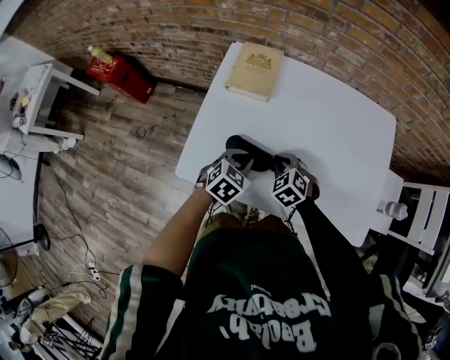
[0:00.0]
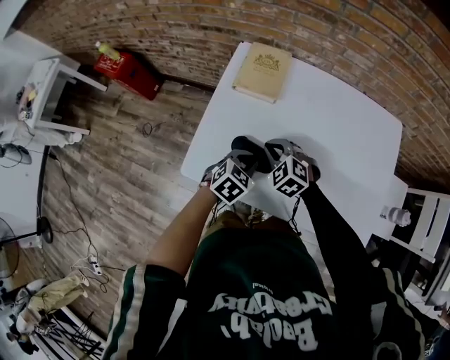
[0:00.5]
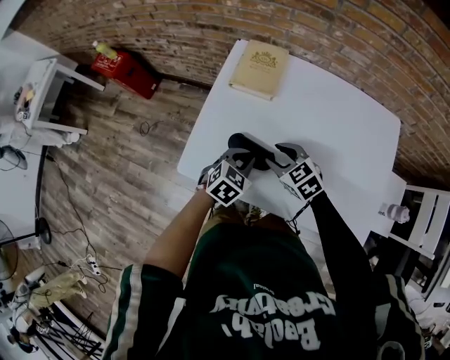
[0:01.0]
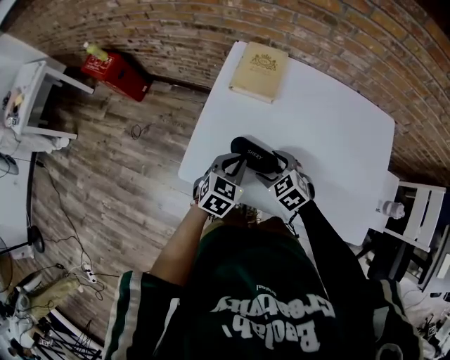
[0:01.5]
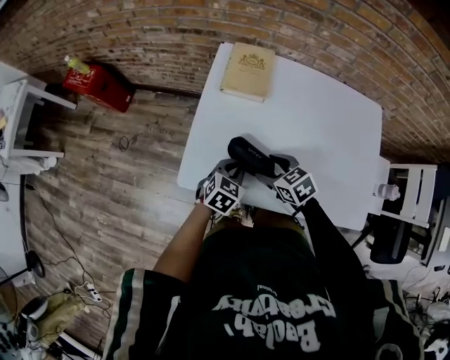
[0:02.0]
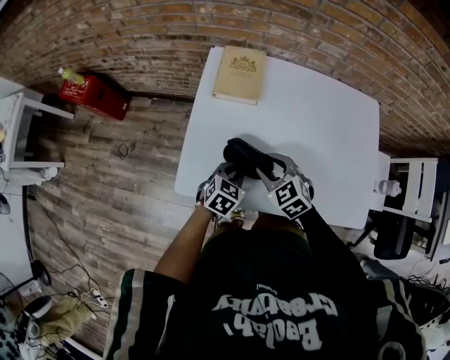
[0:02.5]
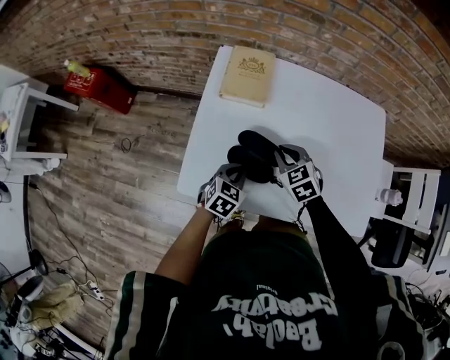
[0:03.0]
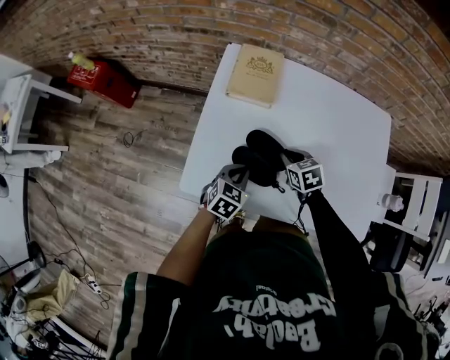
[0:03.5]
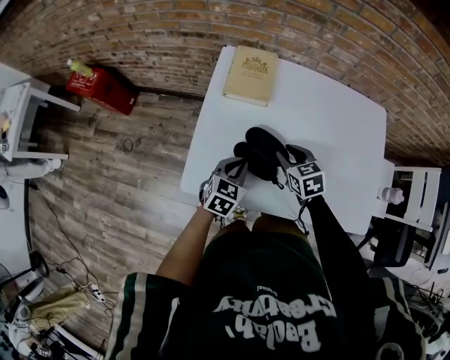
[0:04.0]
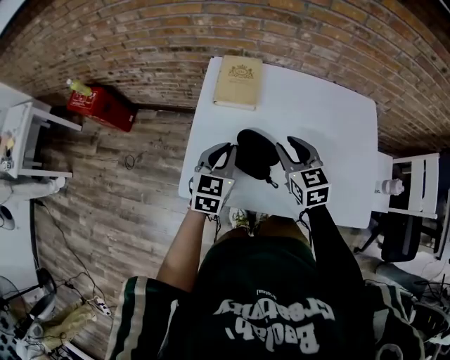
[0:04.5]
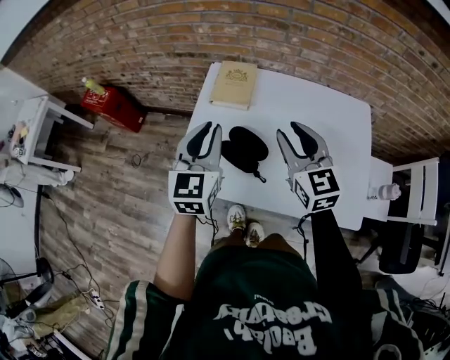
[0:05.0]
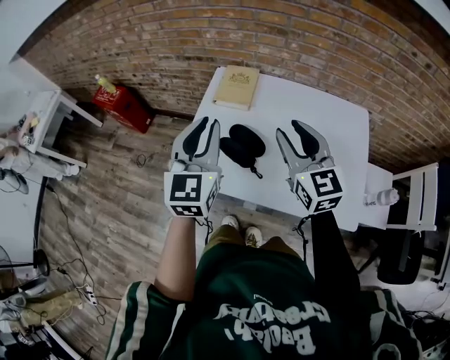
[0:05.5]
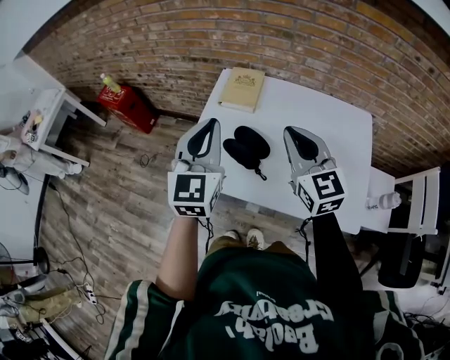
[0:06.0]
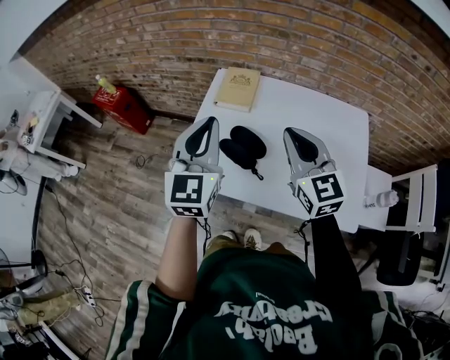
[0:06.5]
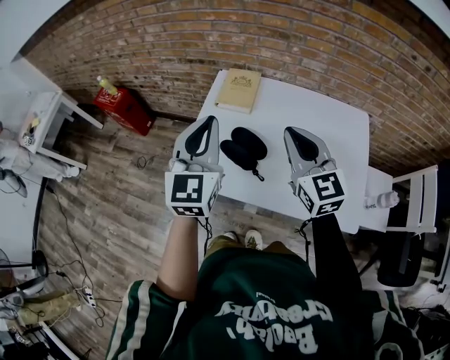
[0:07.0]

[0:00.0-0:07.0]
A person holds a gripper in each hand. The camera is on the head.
0:00.0 to 0:02.0: The right gripper heads to the left, covering roughly 5 cm, changes its angle by some 30 degrees, and opens its fingers.
0:02.0 to 0:03.5: The right gripper shifts about 10 cm forward and to the right, and closes up.
0:03.5 to 0:05.0: Both grippers travel together upward, roughly 30 cm. The left gripper points its fingers some 30 degrees further upward. Meanwhile the right gripper points its fingers roughly 40 degrees further upward.
0:05.0 to 0:07.0: The right gripper goes about 5 cm backward, and closes up, while the left gripper heads upward and backward, covering roughly 10 cm.

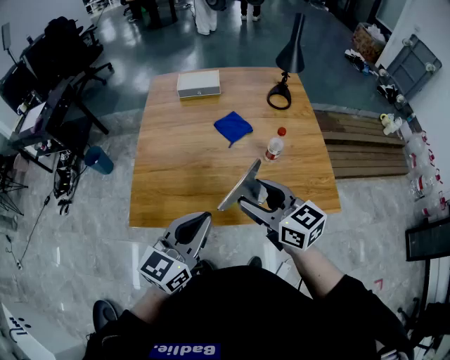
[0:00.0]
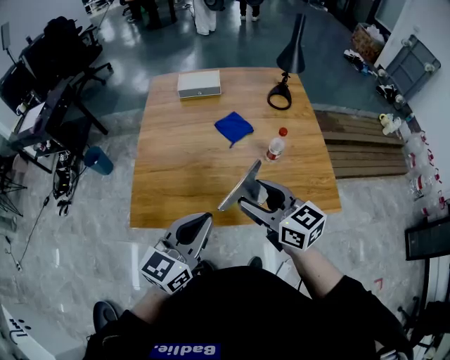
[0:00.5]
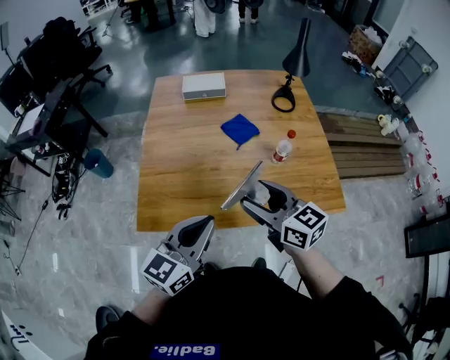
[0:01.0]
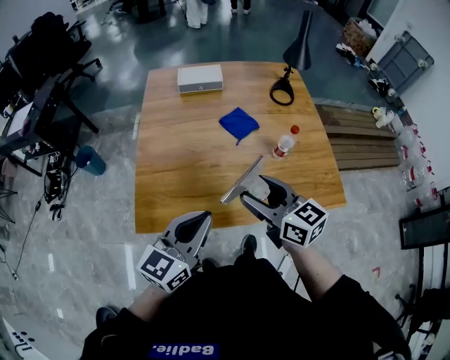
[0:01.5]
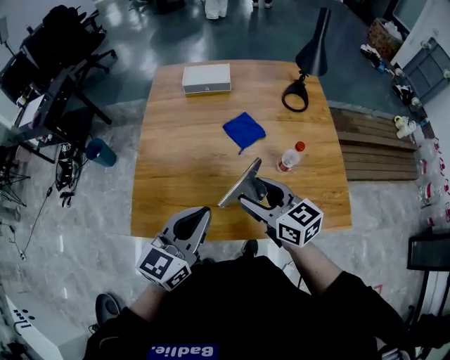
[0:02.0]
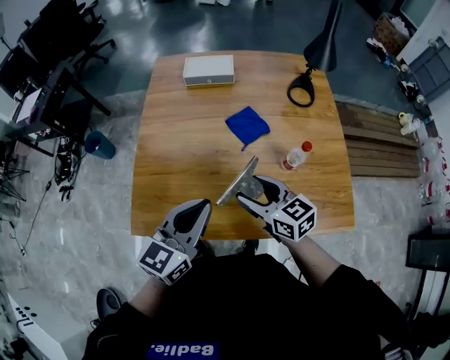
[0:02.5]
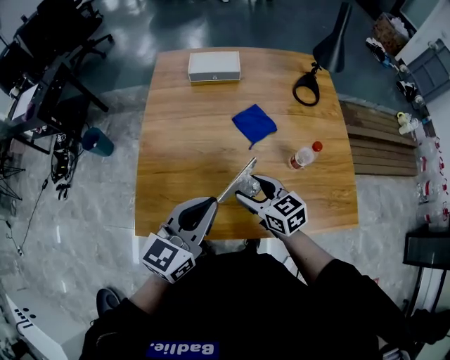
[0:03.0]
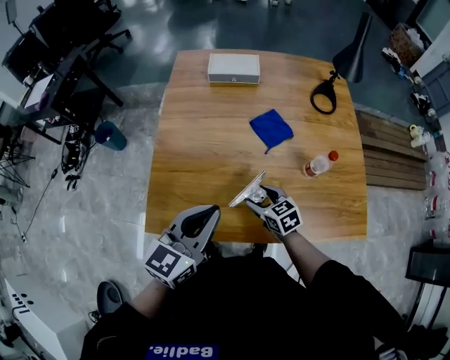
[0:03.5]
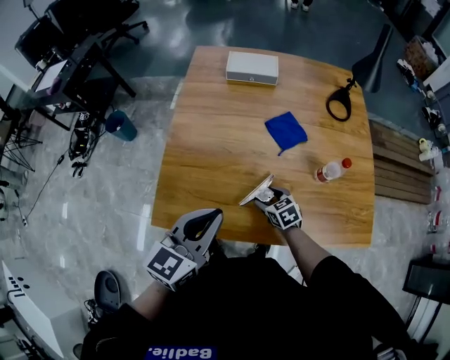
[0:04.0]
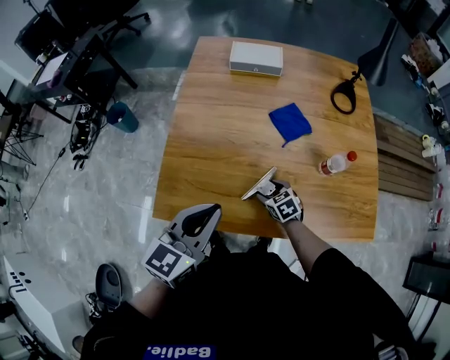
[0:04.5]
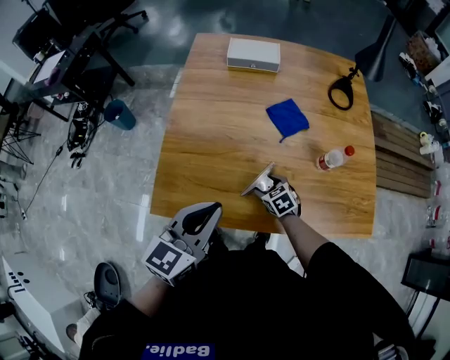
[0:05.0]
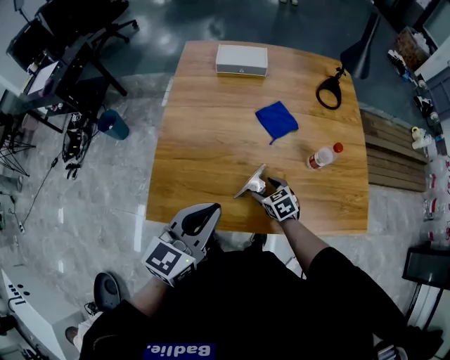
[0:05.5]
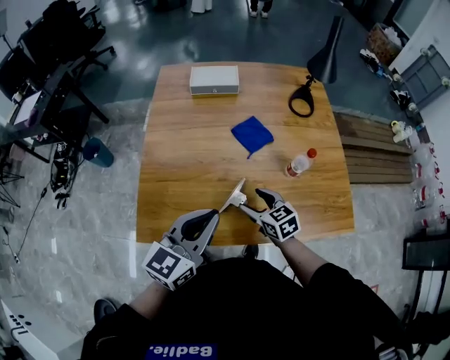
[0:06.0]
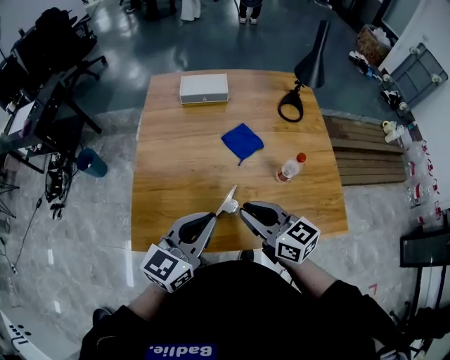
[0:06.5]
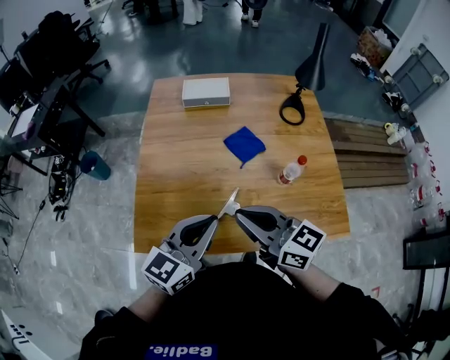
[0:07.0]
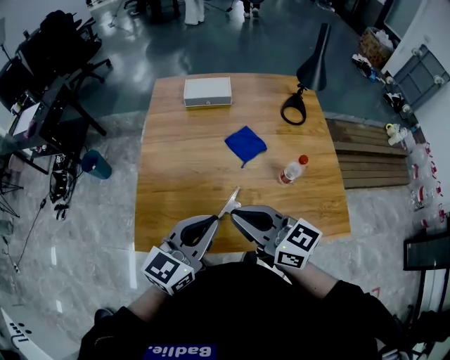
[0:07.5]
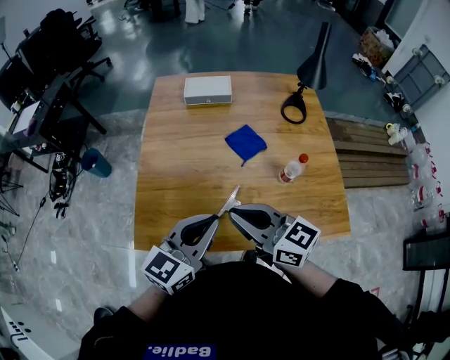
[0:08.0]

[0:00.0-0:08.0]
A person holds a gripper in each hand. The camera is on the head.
0:00.0 to 0:02.0: Both grippers travel together forward, about 10 cm.
0:02.0 to 0:04.0: The left gripper goes about 10 cm to the left. Meanwhile the right gripper heads downward, covering roughly 25 cm, and points its fingers about 30 degrees further downward.
0:04.0 to 0:06.0: The right gripper travels upward by about 10 cm; the left gripper shifts by some 5 cm.
0:06.0 to 0:08.0: The right gripper goes roughly 20 cm upward, points its fingers about 30 degrees further upward, and closes its fingers.

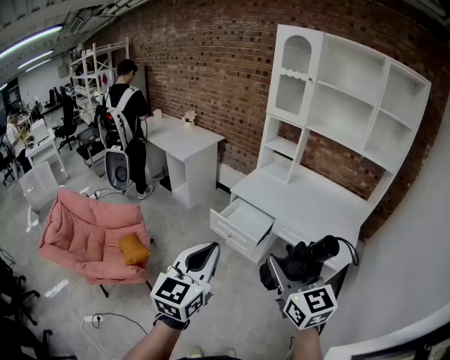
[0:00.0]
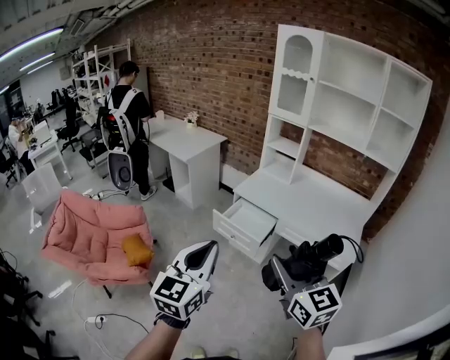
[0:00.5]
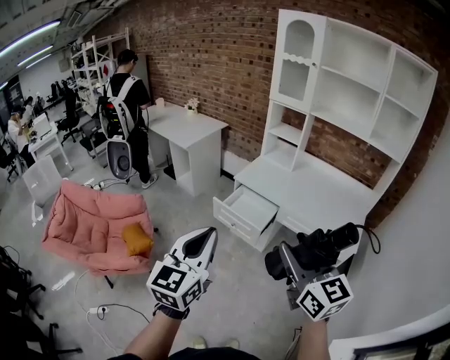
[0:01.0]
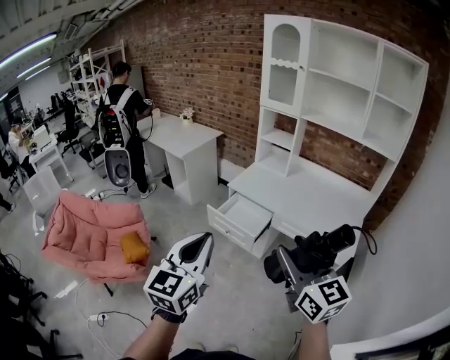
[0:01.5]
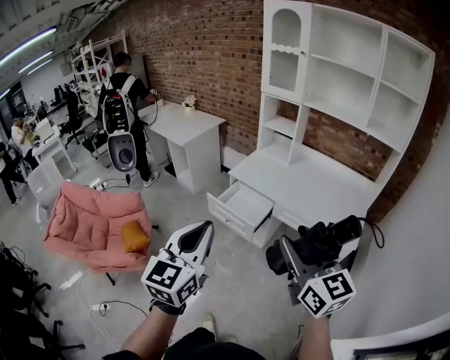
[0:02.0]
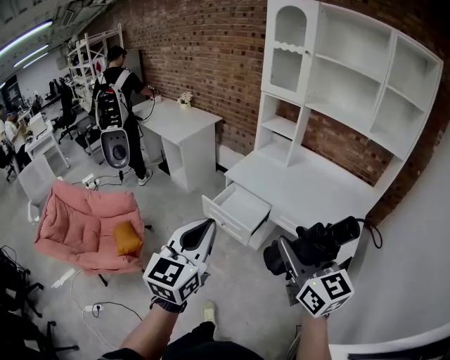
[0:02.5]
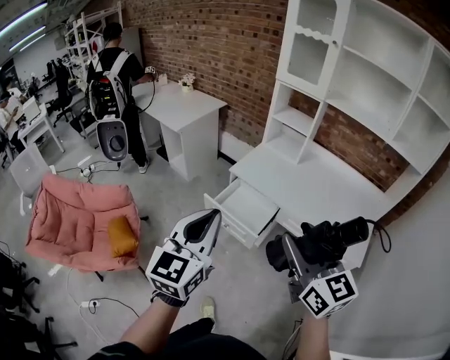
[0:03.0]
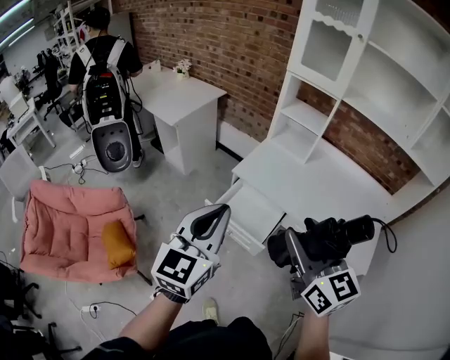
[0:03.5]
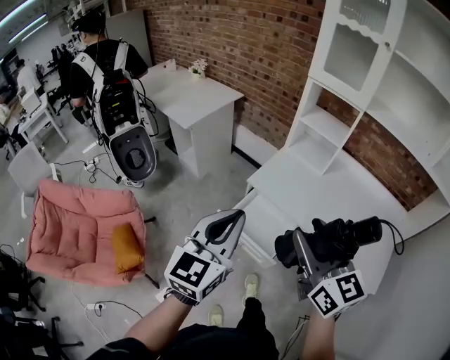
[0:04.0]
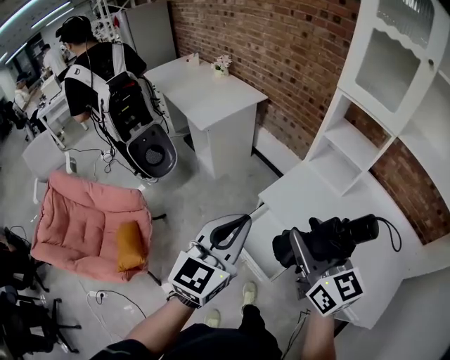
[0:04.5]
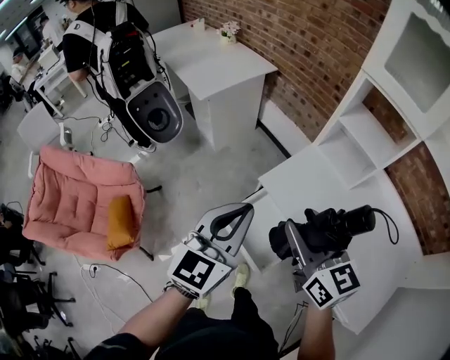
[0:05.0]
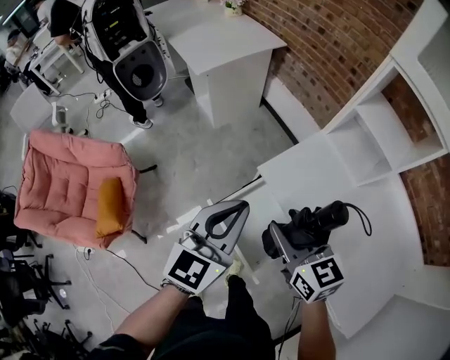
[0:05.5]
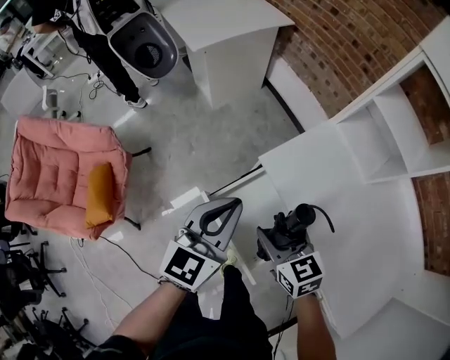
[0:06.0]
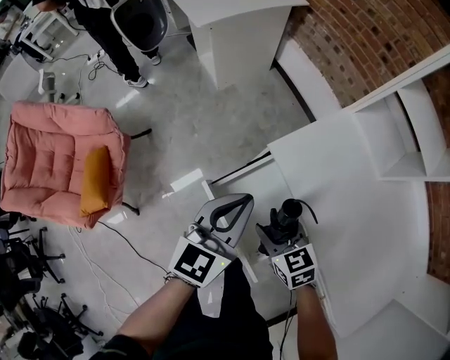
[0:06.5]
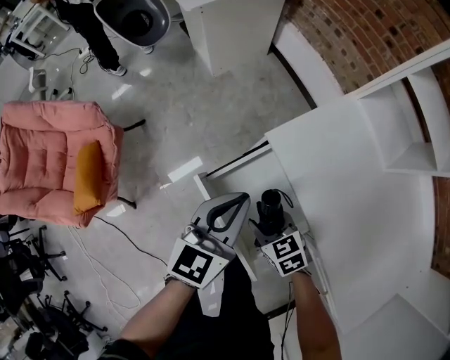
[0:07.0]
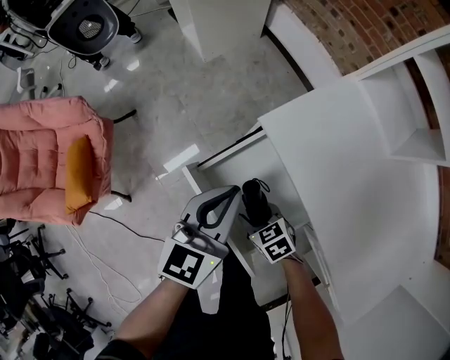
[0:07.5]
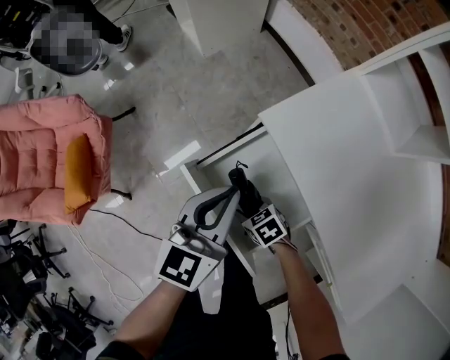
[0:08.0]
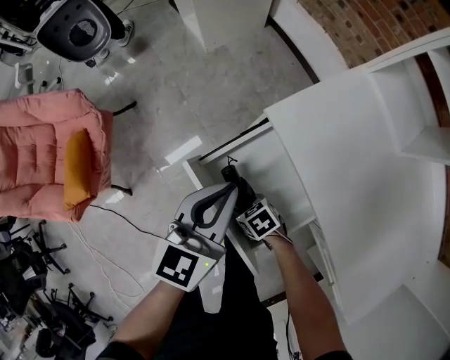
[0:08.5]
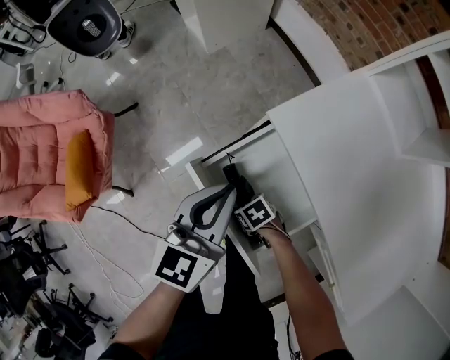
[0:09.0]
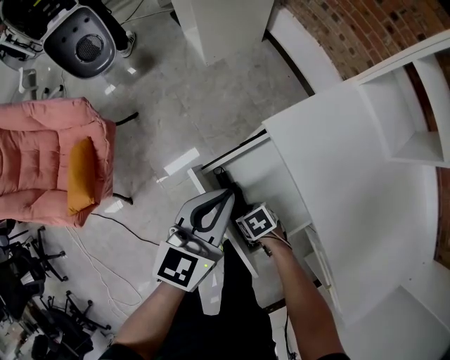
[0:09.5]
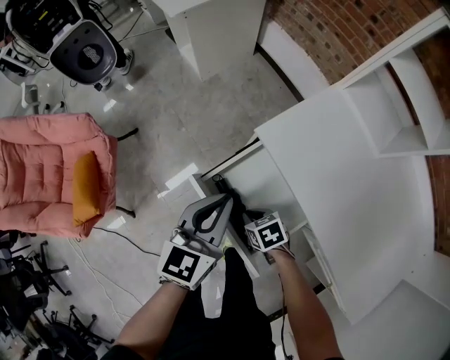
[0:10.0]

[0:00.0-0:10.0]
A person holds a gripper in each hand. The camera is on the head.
0:00.0 to 0:02.0: Both grippers move to the right, roughly 10 cm.
0:02.0 to 0:04.0: The grippers both shift forward by about 35 cm.
0:04.0 to 0:06.0: Both grippers travel together downward and forward, about 35 cm. The right gripper angles its fingers downward, by some 30 degrees.
0:06.0 to 0:08.0: The right gripper travels downward by roughly 30 cm, and rotates approximately 40 degrees; the left gripper is displaced downward by roughly 15 cm.
0:08.0 to 0:10.0: The right gripper moves upward, about 5 cm, and closes.

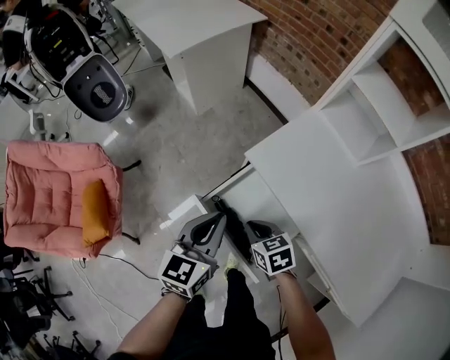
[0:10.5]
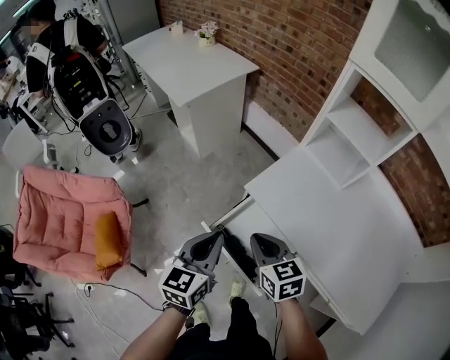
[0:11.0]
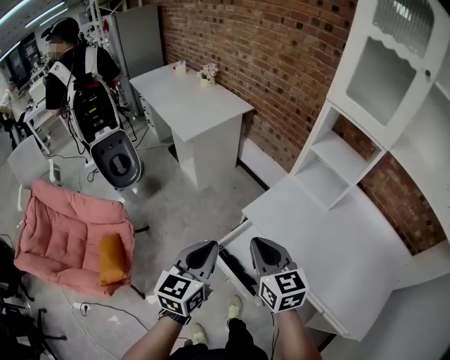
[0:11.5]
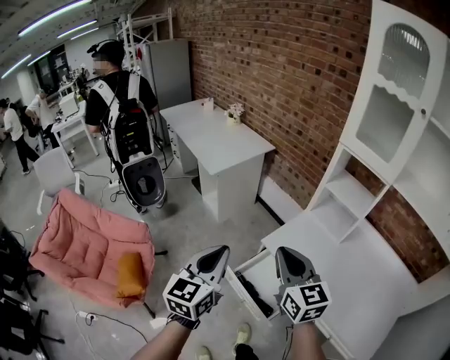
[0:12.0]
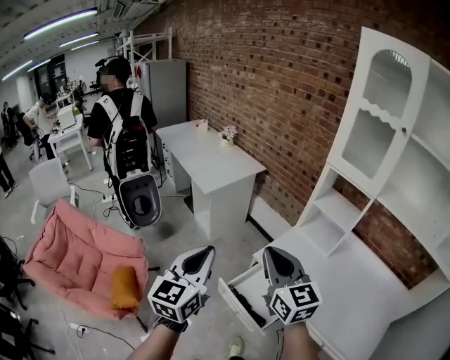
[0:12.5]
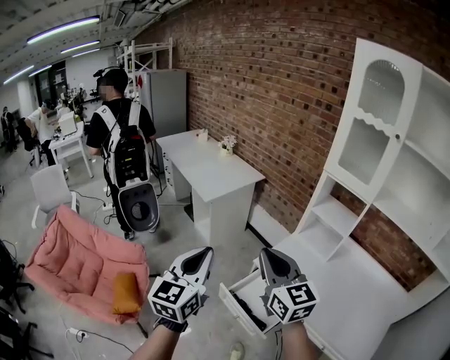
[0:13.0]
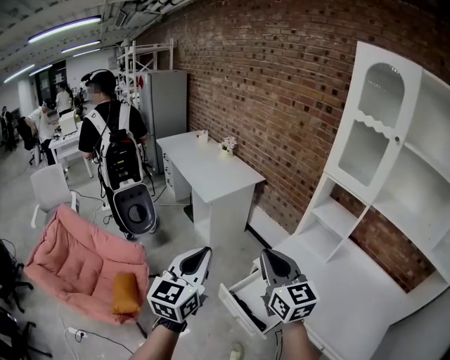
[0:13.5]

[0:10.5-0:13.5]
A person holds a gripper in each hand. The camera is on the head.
0:10.5 to 0:12.0: The right gripper travels upward by about 40 cm, and angles its fingers upward, by roughly 40 degrees, while the left gripper is displaced upward by roughly 30 cm.
0:12.0 to 0:13.5: The right gripper shifts some 10 cm upward; the left gripper shifts some 10 cm upward and to the left.
